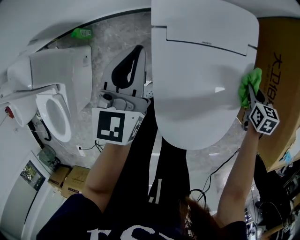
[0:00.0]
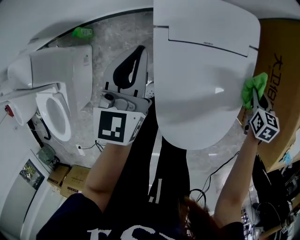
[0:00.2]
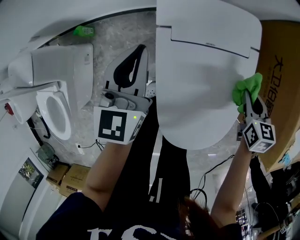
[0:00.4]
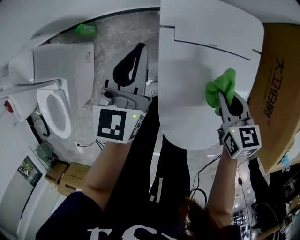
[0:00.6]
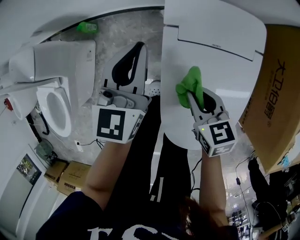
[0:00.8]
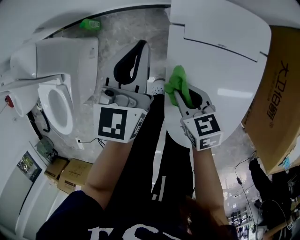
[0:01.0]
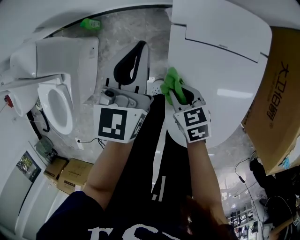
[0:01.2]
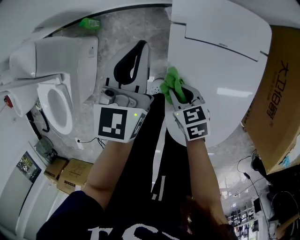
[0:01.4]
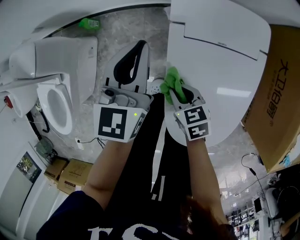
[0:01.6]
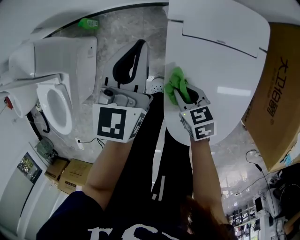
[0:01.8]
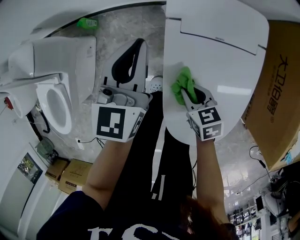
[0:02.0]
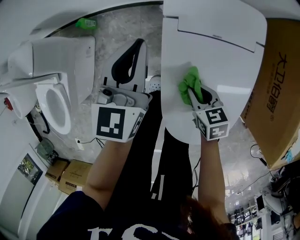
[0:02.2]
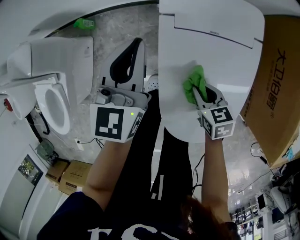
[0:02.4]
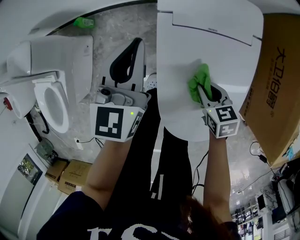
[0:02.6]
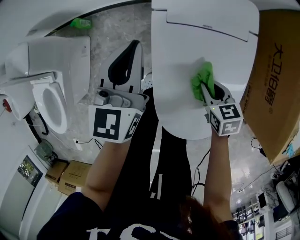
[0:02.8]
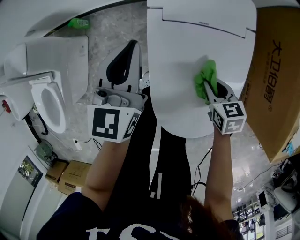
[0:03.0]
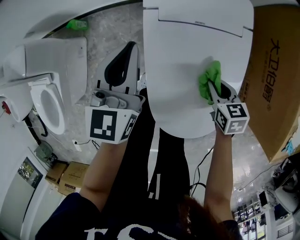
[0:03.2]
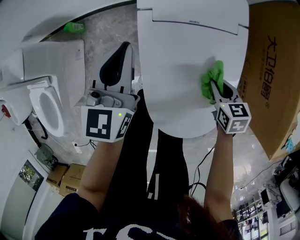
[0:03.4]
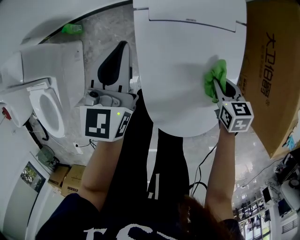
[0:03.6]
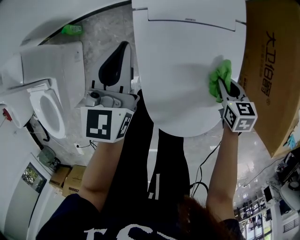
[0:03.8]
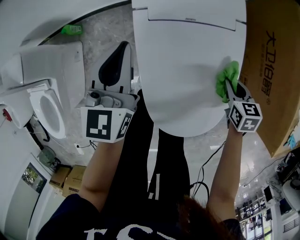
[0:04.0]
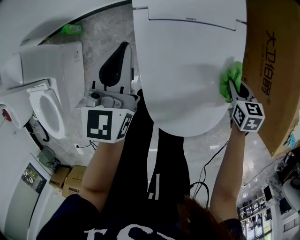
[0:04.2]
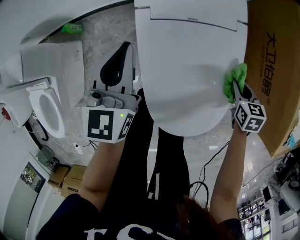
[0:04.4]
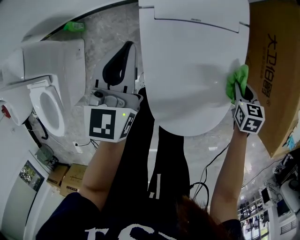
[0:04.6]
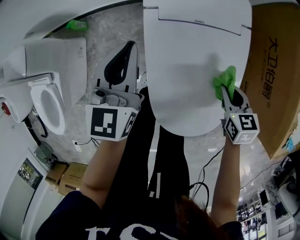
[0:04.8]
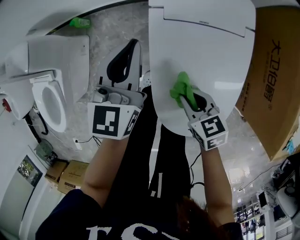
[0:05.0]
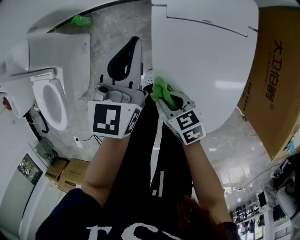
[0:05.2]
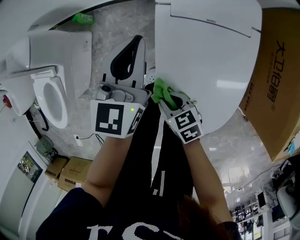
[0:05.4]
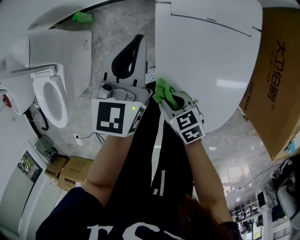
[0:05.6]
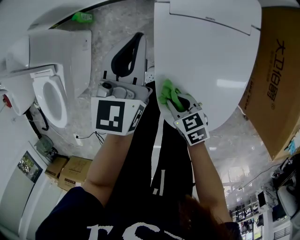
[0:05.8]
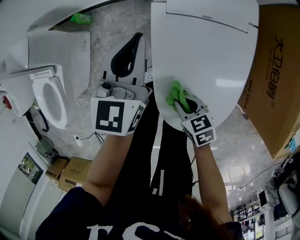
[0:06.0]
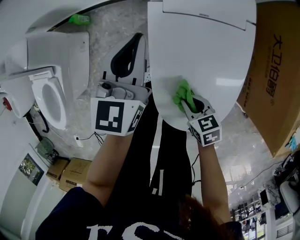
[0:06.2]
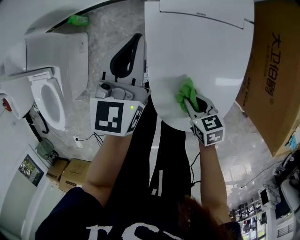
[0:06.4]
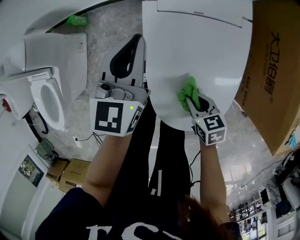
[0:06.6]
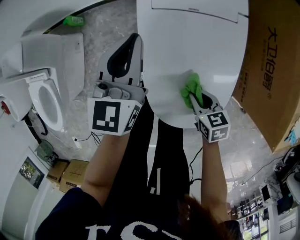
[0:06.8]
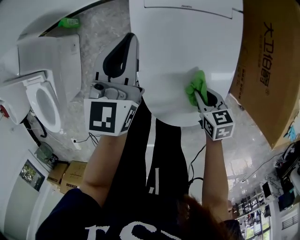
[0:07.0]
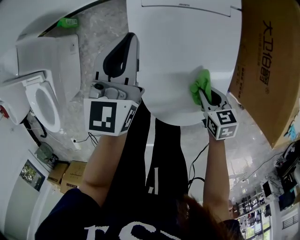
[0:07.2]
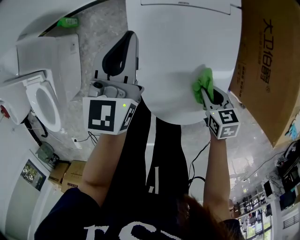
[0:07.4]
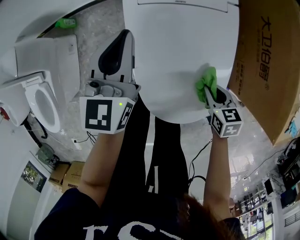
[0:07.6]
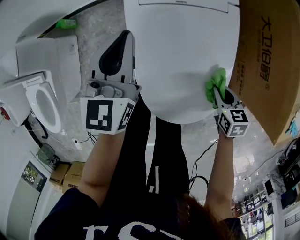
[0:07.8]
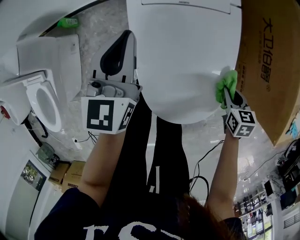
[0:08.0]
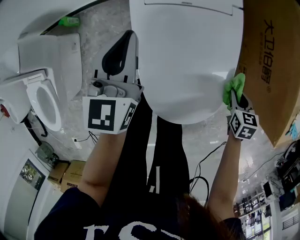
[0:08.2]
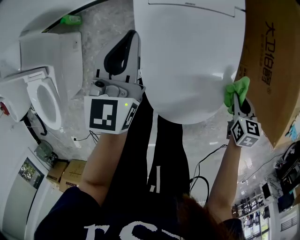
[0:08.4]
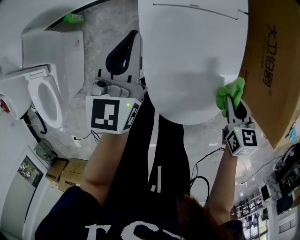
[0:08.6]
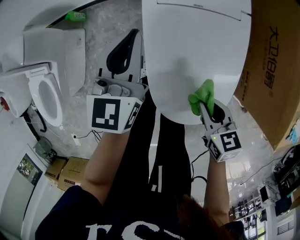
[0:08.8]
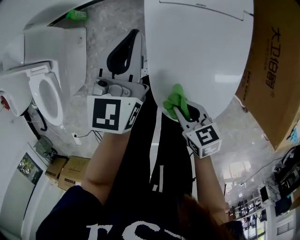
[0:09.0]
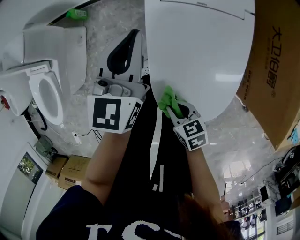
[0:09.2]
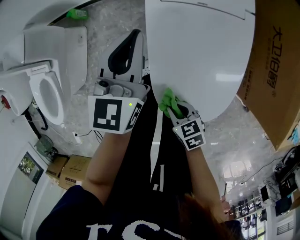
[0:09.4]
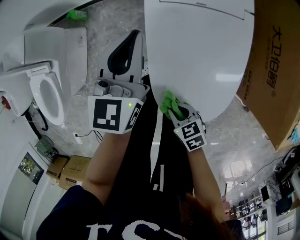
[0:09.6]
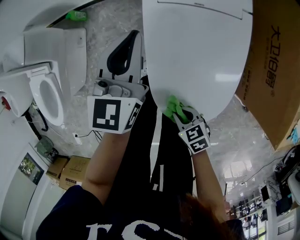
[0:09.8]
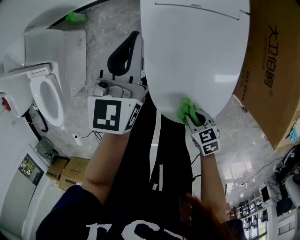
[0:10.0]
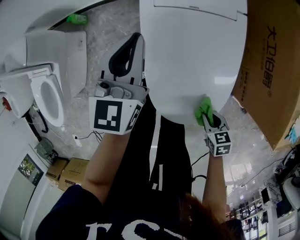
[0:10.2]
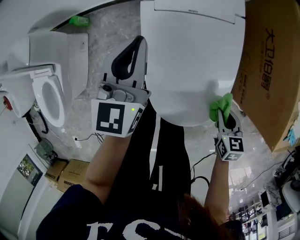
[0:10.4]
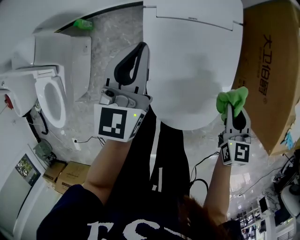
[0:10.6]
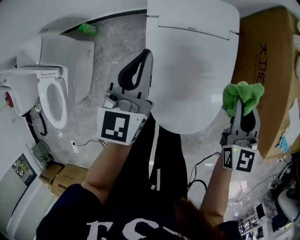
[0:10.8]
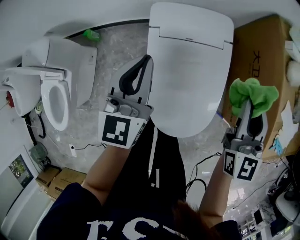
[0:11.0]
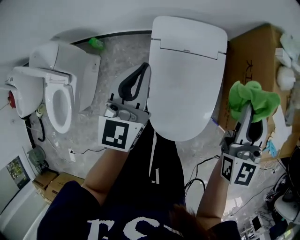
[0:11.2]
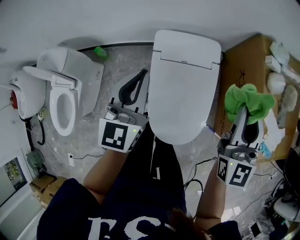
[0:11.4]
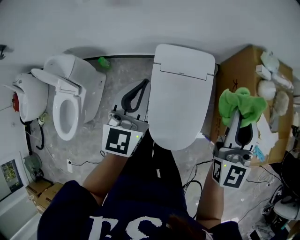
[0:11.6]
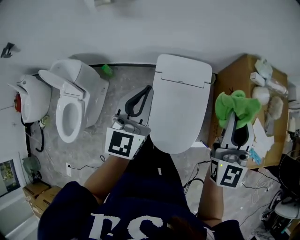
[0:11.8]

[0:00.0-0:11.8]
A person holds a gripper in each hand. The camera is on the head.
0:00.0 to 0:01.4: The left gripper moves roughly 5 cm; the right gripper travels upward and back again, roughly 10 cm each way, and changes its angle by approximately 30 degrees.
0:01.4 to 0:03.0: The right gripper goes roughly 20 cm to the right and backward, while the left gripper goes roughly 5 cm backward.
0:03.0 to 0:04.4: The right gripper goes roughly 15 cm to the right.
0:04.4 to 0:06.0: The right gripper changes place by about 30 cm, and swivels approximately 30 degrees.
0:06.0 to 0:07.4: The left gripper ends up roughly 5 cm from where it was. The right gripper is displaced to the right by about 15 cm.
0:07.4 to 0:08.8: The right gripper moves upward, some 10 cm, and moves roughly 15 cm to the right and comes back.
0:08.8 to 0:10.4: The right gripper changes place by some 15 cm.
0:10.4 to 0:11.8: The left gripper heads upward, covering roughly 35 cm; the right gripper moves upward, about 60 cm, and points its fingers some 60 degrees further upward.

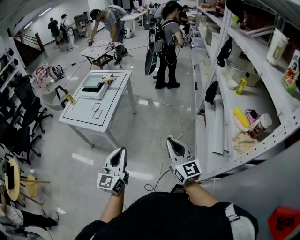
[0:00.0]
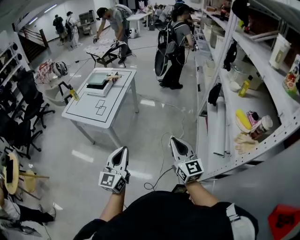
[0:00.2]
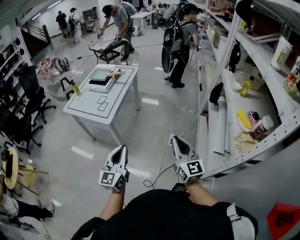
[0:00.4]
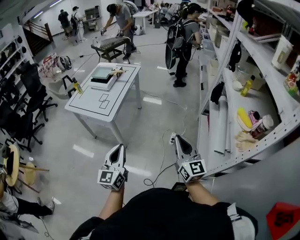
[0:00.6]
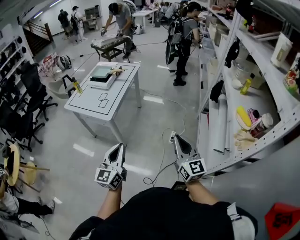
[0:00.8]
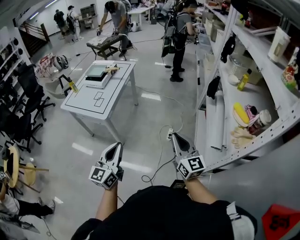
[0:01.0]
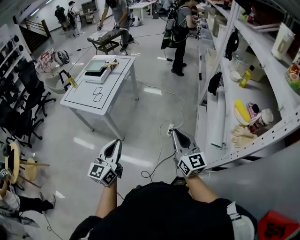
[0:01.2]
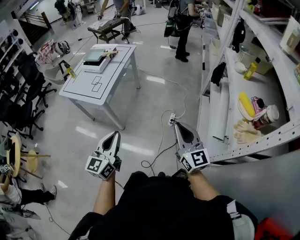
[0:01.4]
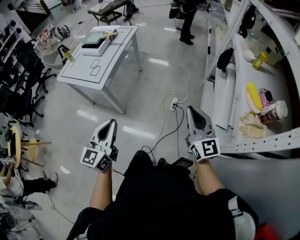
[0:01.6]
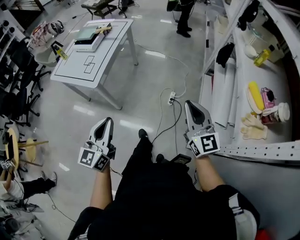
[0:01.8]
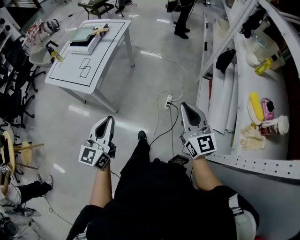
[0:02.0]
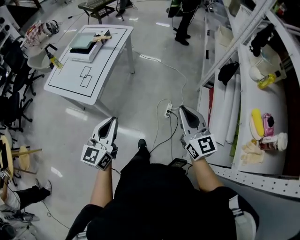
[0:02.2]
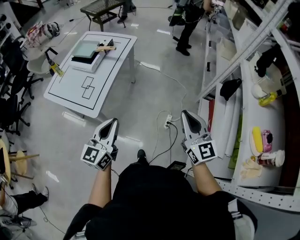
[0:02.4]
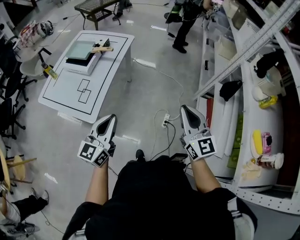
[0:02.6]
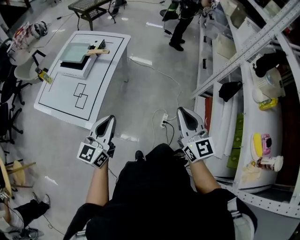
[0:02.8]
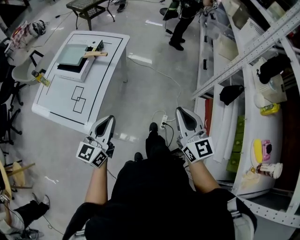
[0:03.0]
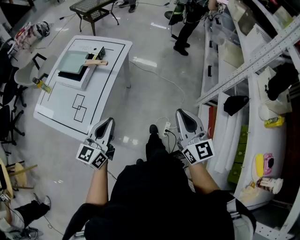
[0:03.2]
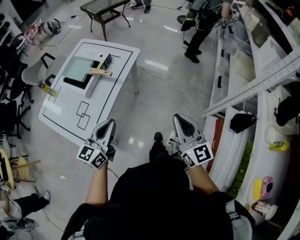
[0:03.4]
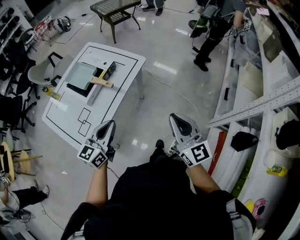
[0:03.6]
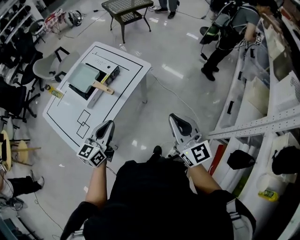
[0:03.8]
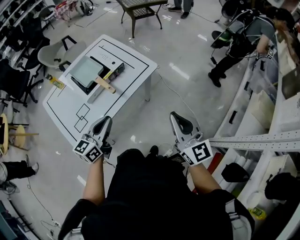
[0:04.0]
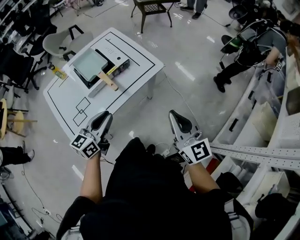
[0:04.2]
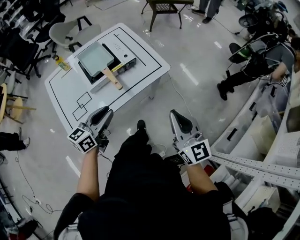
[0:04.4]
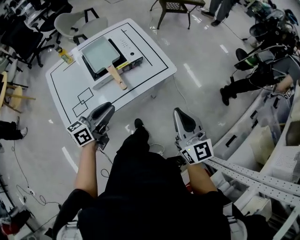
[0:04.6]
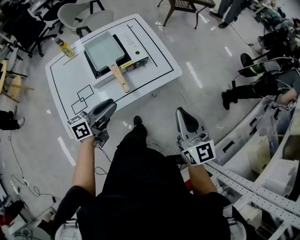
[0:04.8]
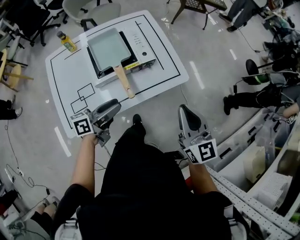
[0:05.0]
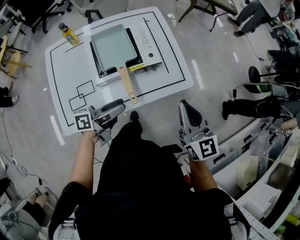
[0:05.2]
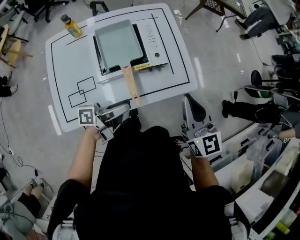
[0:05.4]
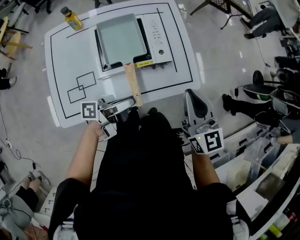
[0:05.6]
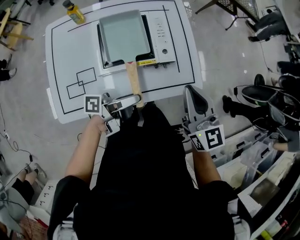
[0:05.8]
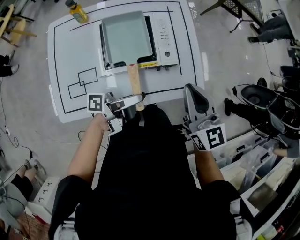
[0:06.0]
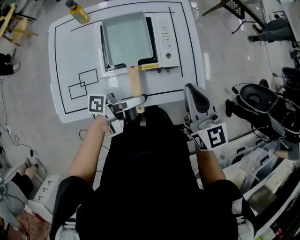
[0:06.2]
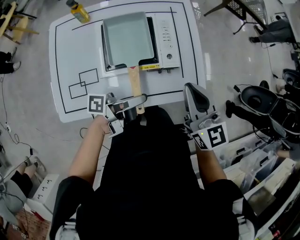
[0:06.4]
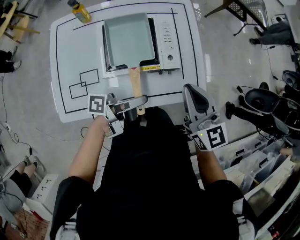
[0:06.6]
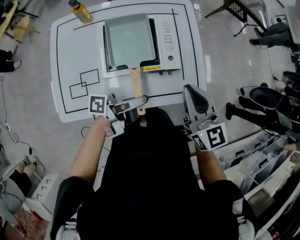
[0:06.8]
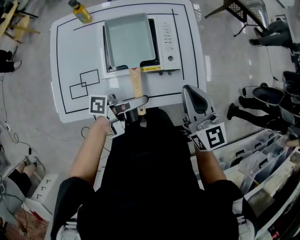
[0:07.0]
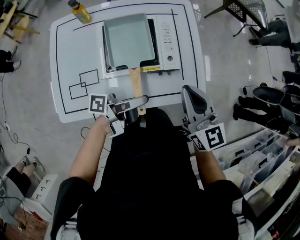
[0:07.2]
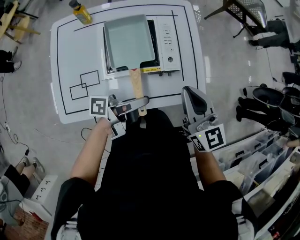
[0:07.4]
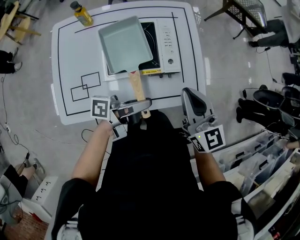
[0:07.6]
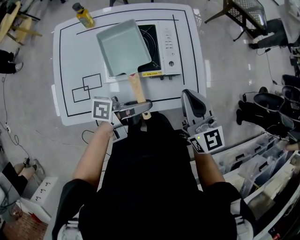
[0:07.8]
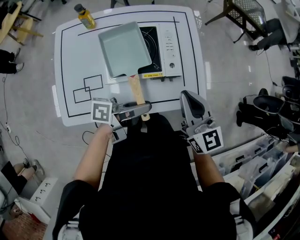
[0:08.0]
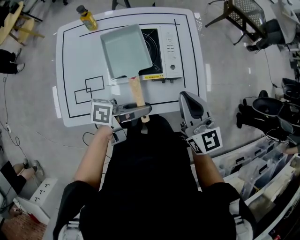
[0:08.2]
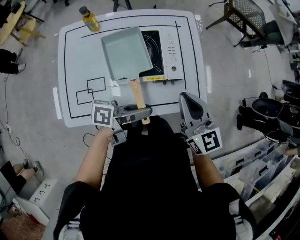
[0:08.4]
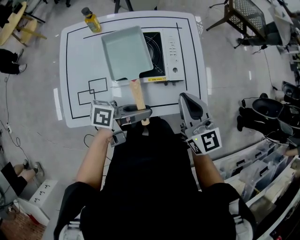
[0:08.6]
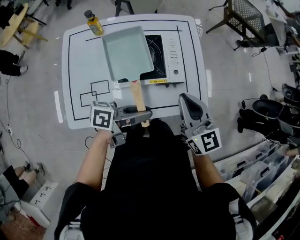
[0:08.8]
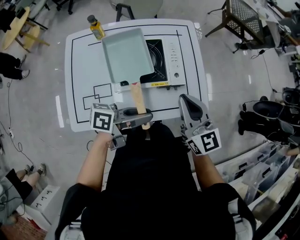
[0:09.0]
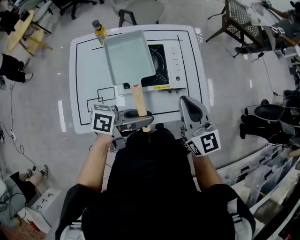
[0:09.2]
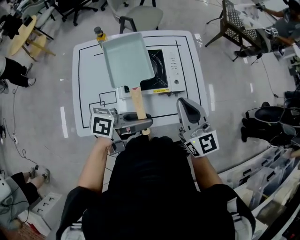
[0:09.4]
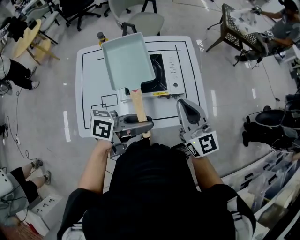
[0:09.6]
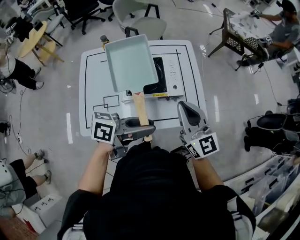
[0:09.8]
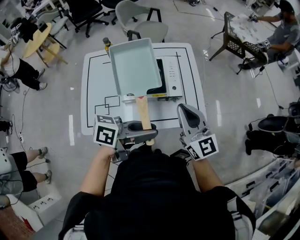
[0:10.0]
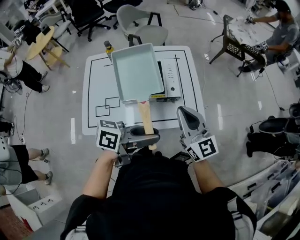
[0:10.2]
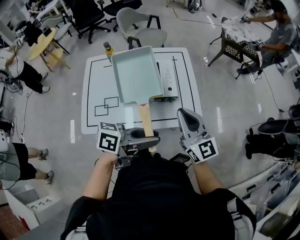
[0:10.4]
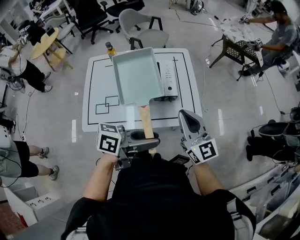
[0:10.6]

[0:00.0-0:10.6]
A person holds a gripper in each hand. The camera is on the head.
0:00.0 to 0:01.6: The right gripper shifts approximately 10 cm to the right.
0:01.6 to 0:03.0: The two grippers go roughly 35 cm forward.
0:03.0 to 0:04.6: The right gripper ends up some 40 cm from where it was, and rotates approximately 40 degrees. The left gripper shifts by some 30 cm, rotates about 40 degrees, and opens.
0:04.6 to 0:06.0: The right gripper shifts about 25 cm forward and to the left, and changes its angle by roughly 20 degrees. The left gripper is displaced forward and downward by some 15 cm, twists roughly 50 degrees counterclockwise, seen from behind, and opens up.
0:06.0 to 0:07.6: The left gripper closes its fingers.
0:07.6 to 0:09.0: The left gripper ends up about 5 cm from where it was, and rotates about 20 degrees.
0:09.0 to 0:10.6: The left gripper goes roughly 20 cm upward, to the right and backward; the right gripper shifts approximately 15 cm to the right, upward and backward.

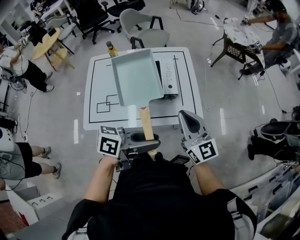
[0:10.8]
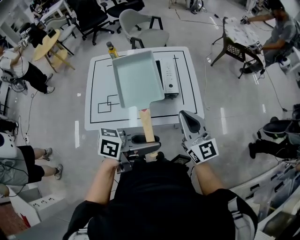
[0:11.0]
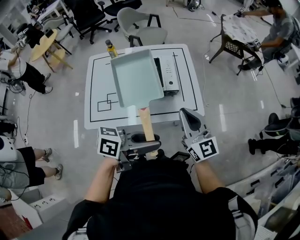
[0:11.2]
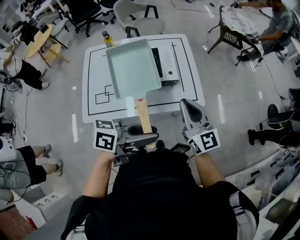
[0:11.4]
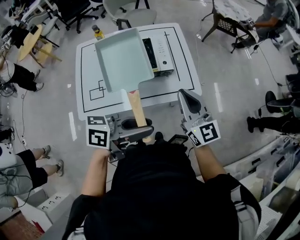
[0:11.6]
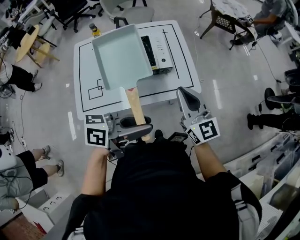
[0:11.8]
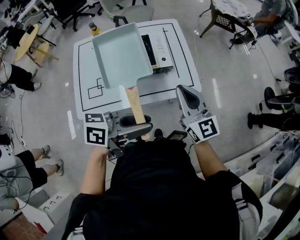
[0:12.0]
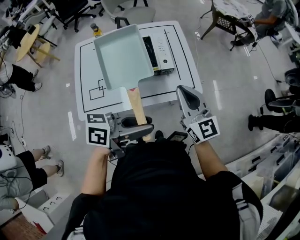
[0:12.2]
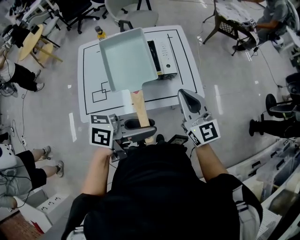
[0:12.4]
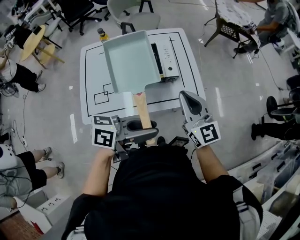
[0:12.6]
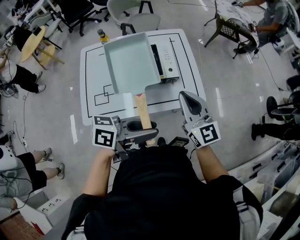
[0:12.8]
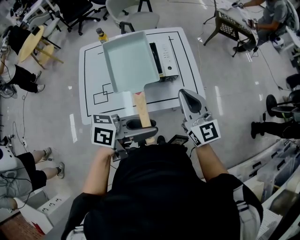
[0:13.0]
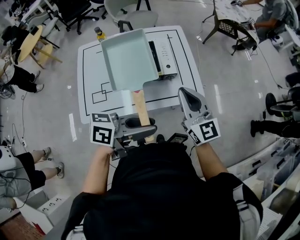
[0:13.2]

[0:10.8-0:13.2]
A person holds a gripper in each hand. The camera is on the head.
0:10.8 to 0:13.2: The grippers move only a little.
